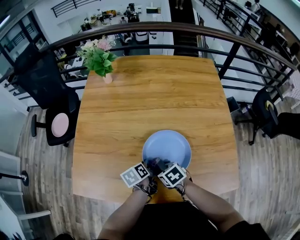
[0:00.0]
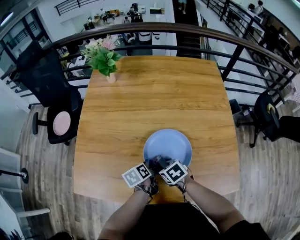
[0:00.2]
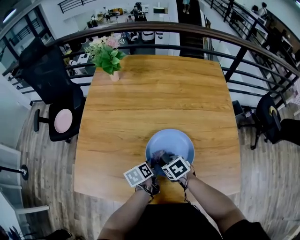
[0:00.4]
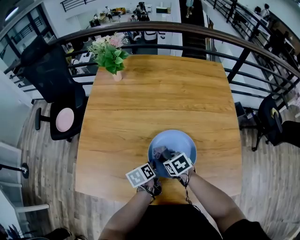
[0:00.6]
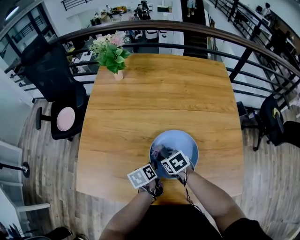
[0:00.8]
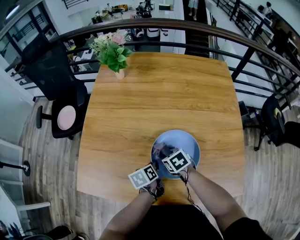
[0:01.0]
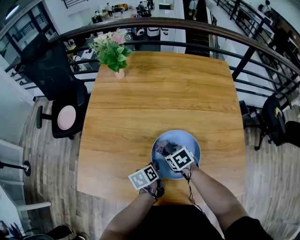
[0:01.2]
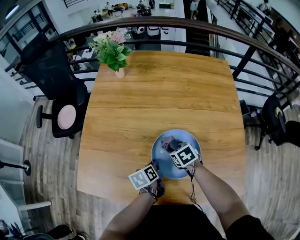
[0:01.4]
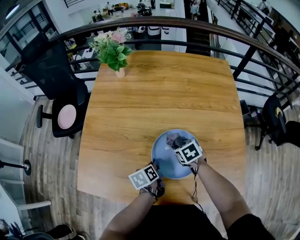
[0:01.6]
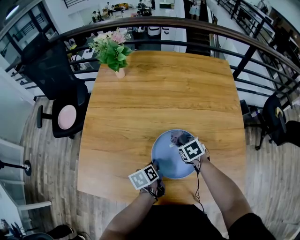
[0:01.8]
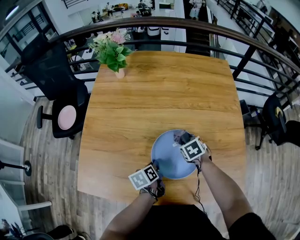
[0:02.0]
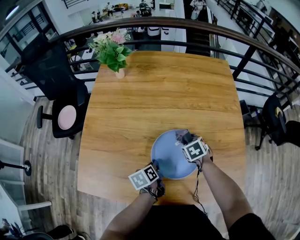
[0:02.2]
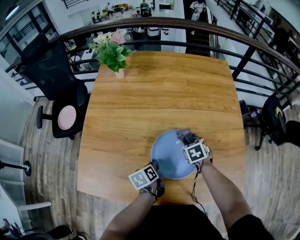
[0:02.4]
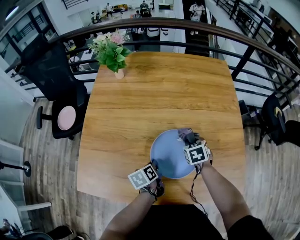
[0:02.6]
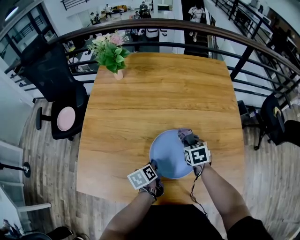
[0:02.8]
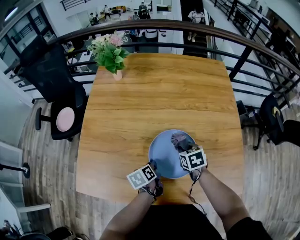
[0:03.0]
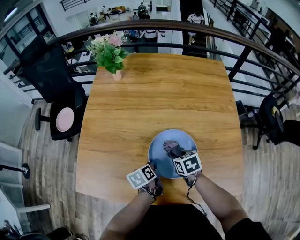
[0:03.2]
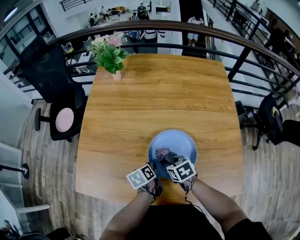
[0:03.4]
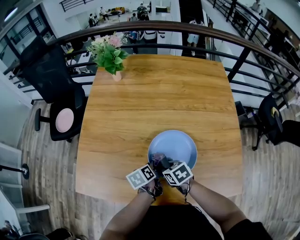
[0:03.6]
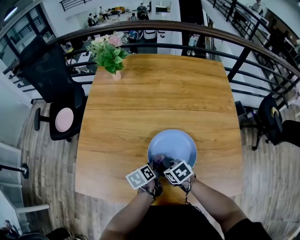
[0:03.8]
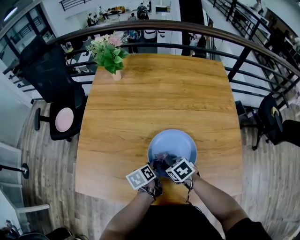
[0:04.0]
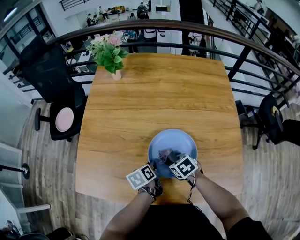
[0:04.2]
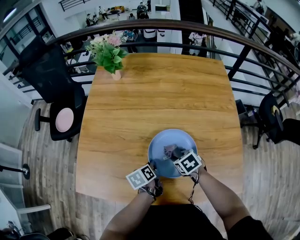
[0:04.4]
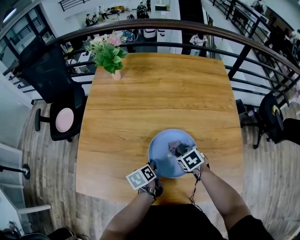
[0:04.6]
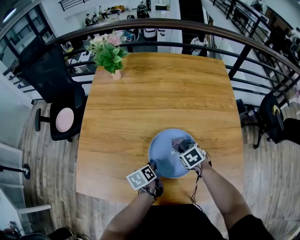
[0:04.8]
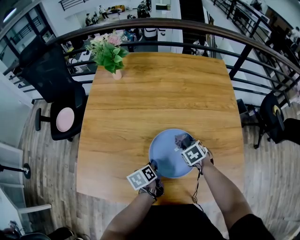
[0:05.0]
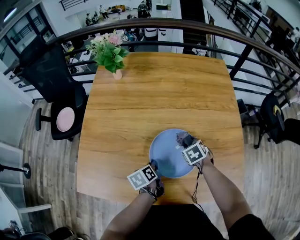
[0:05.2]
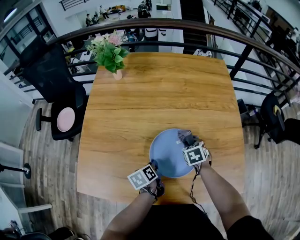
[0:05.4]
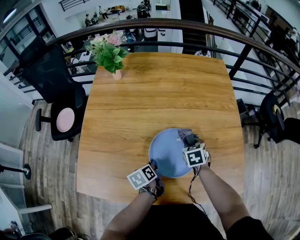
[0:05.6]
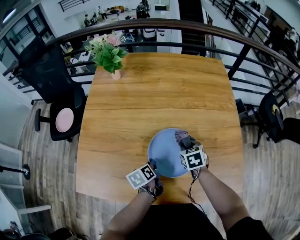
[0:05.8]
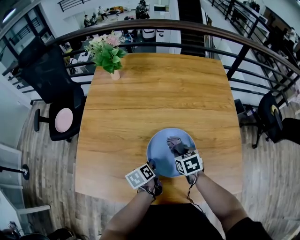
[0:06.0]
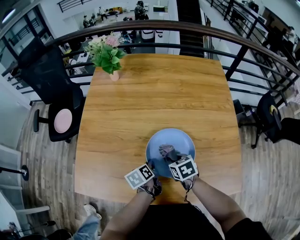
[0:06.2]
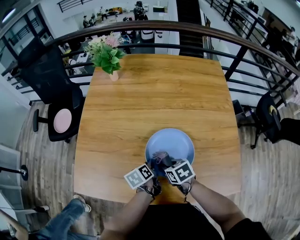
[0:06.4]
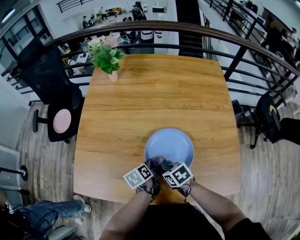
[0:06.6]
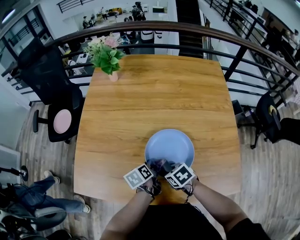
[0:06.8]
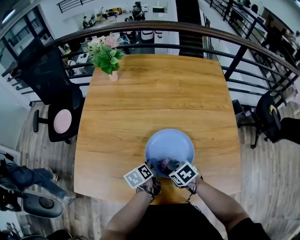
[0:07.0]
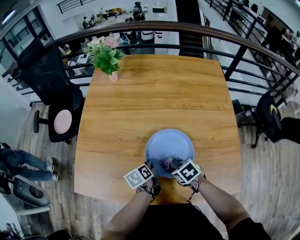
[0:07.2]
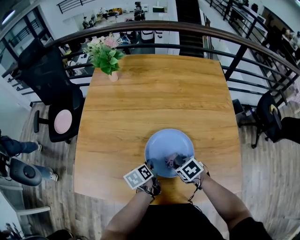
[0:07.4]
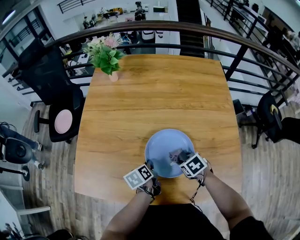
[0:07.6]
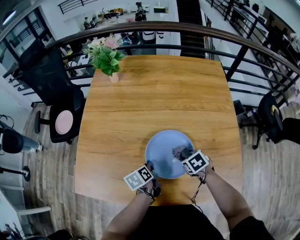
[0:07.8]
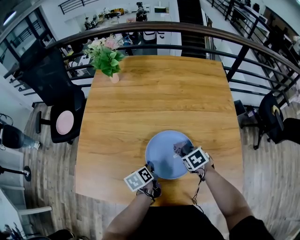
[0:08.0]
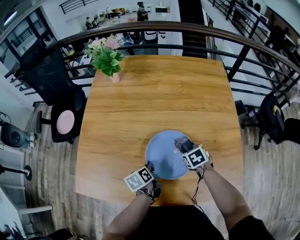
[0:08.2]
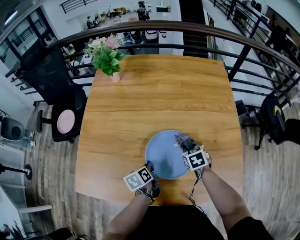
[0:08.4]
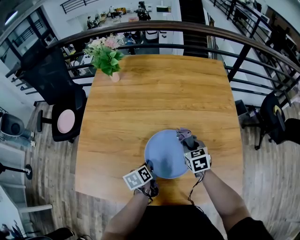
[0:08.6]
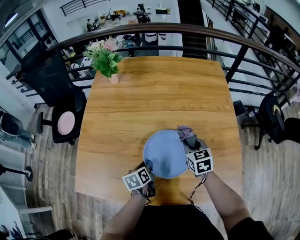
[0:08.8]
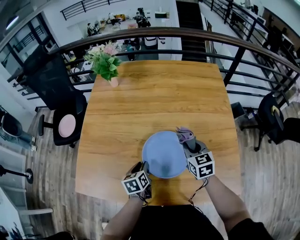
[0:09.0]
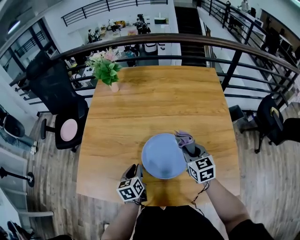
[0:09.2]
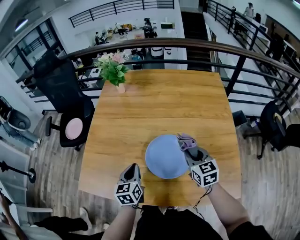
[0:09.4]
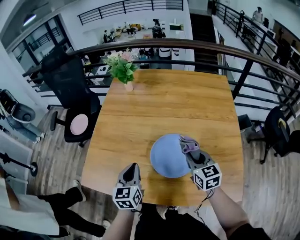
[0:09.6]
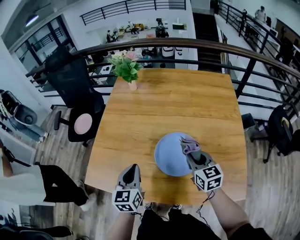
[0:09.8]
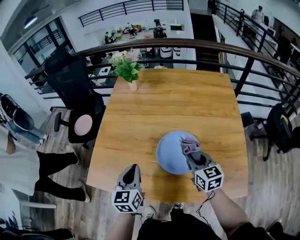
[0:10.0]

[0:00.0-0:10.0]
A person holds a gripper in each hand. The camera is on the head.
0:00.0 to 0:01.4: The right gripper goes approximately 10 cm forward.
0:01.4 to 0:02.8: The right gripper goes some 10 cm to the right, and rotates approximately 20 degrees.
0:02.8 to 0:04.2: The right gripper ends up roughly 15 cm from where it was, and turns by some 30 degrees.
0:04.2 to 0:05.8: The right gripper moves about 10 cm, and turns by about 30 degrees.
0:05.8 to 0:07.2: The right gripper ends up roughly 15 cm from where it was, and turns by about 30 degrees.
0:07.2 to 0:08.6: The right gripper changes place by some 15 cm, and turns by approximately 40 degrees.
0:08.6 to 0:10.0: The left gripper is displaced upward and to the left by roughly 25 cm, changes its angle by about 50 degrees, and opens, then closes again. The right gripper is displaced upward, backward and to the left by some 20 cm, and swivels roughly 30 degrees.

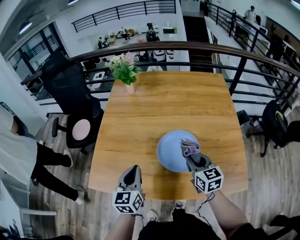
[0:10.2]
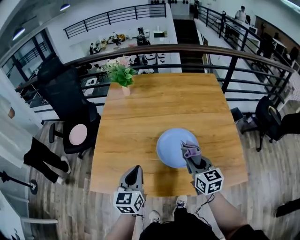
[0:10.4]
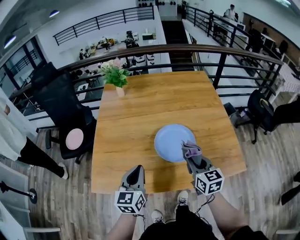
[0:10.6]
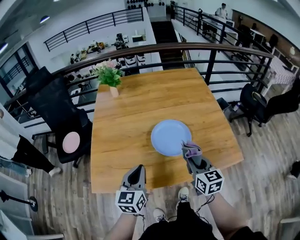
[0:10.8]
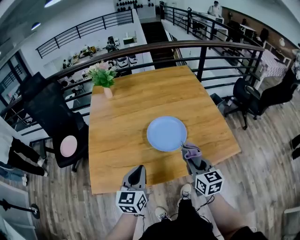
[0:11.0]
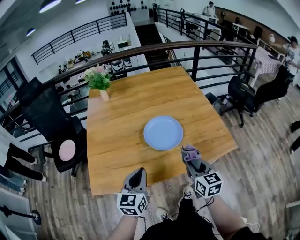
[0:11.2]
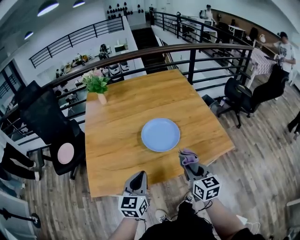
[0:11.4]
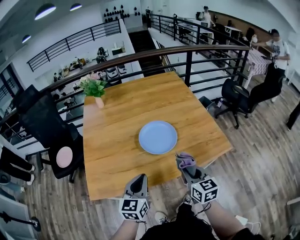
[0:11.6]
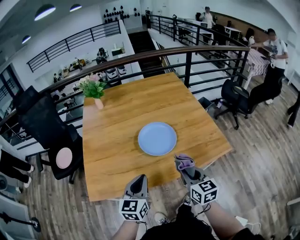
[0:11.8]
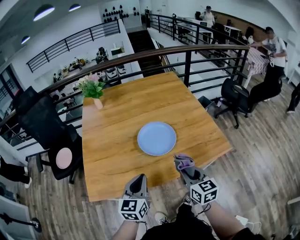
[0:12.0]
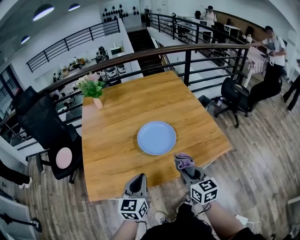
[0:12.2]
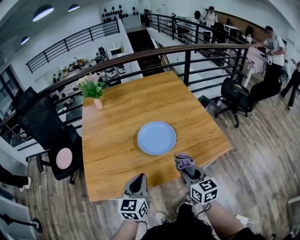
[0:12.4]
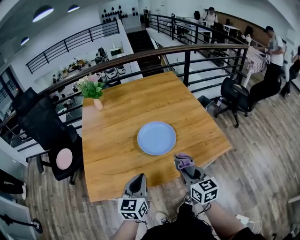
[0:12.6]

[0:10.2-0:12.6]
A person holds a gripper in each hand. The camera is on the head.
0:10.2 to 0:11.4: The left gripper goes roughly 15 cm backward, and changes its angle by some 30 degrees. The right gripper goes roughly 20 cm backward, and rotates some 20 degrees.
0:11.4 to 0:12.6: The grippers move only a little.

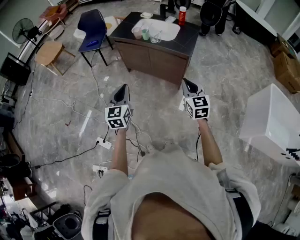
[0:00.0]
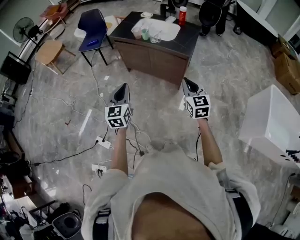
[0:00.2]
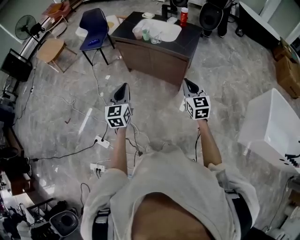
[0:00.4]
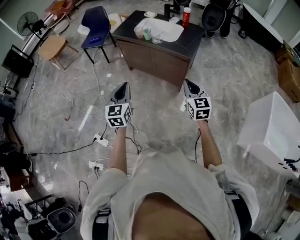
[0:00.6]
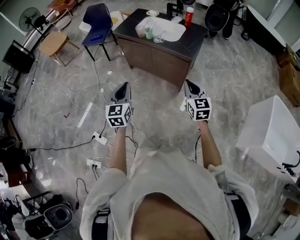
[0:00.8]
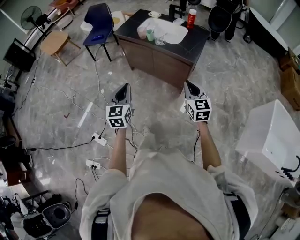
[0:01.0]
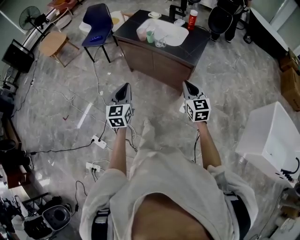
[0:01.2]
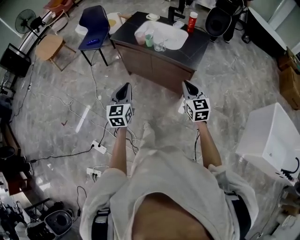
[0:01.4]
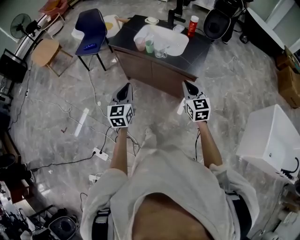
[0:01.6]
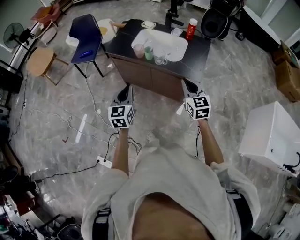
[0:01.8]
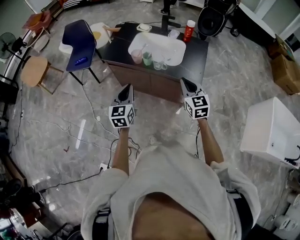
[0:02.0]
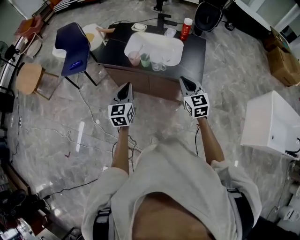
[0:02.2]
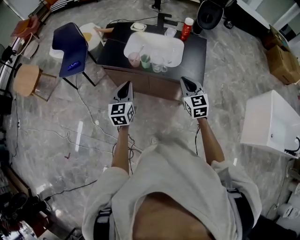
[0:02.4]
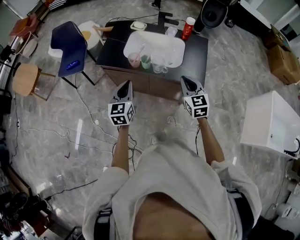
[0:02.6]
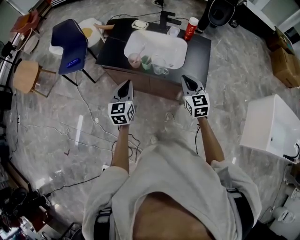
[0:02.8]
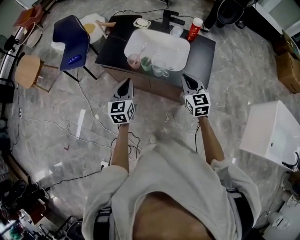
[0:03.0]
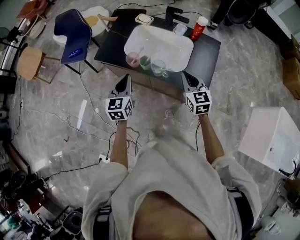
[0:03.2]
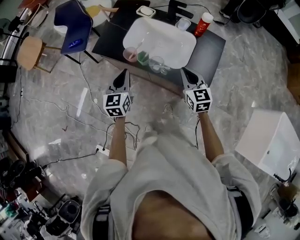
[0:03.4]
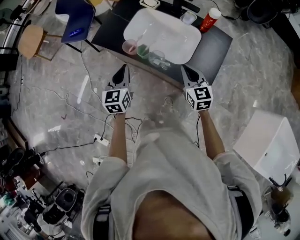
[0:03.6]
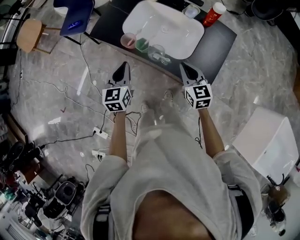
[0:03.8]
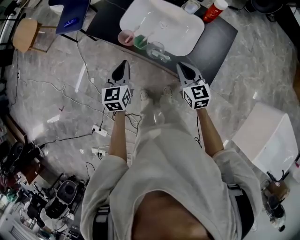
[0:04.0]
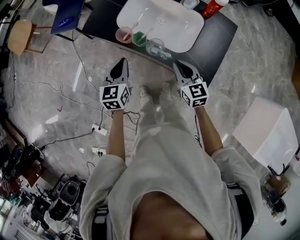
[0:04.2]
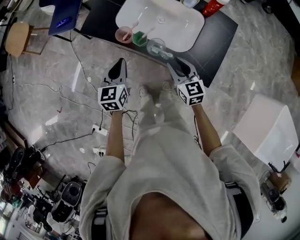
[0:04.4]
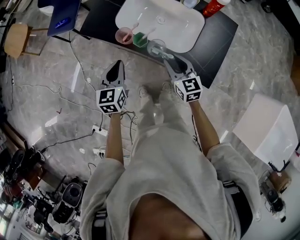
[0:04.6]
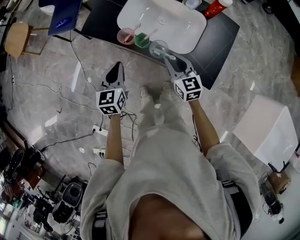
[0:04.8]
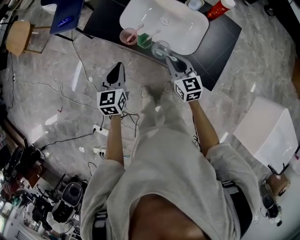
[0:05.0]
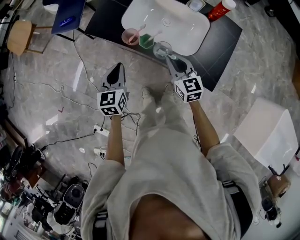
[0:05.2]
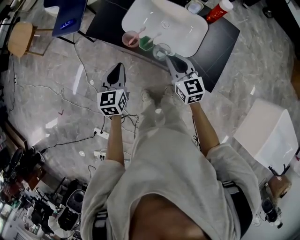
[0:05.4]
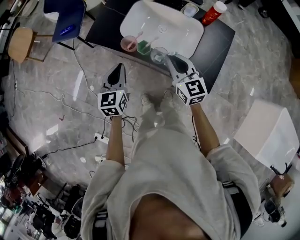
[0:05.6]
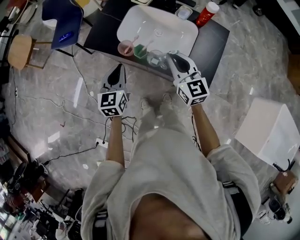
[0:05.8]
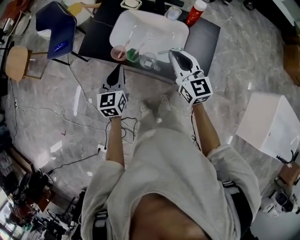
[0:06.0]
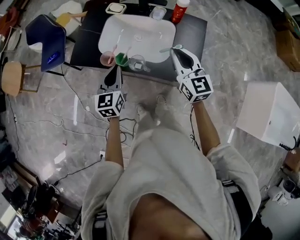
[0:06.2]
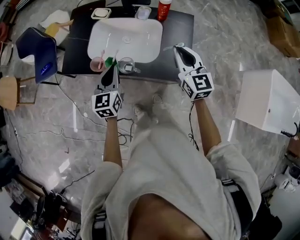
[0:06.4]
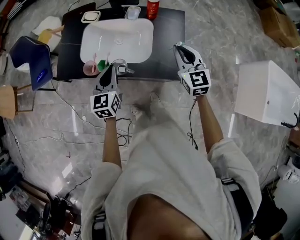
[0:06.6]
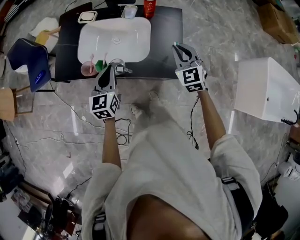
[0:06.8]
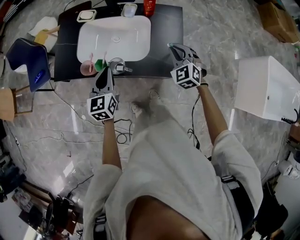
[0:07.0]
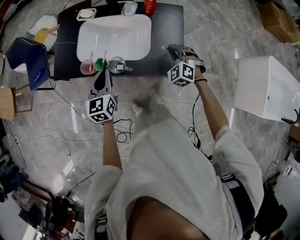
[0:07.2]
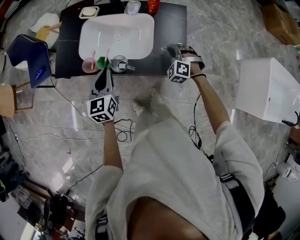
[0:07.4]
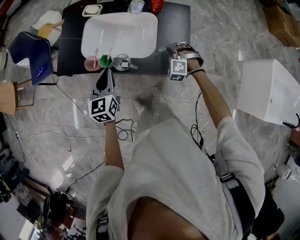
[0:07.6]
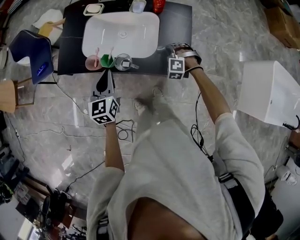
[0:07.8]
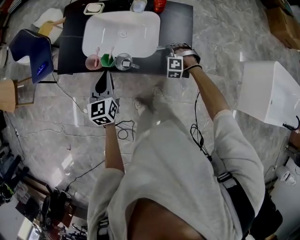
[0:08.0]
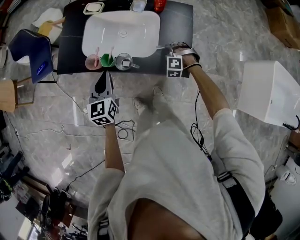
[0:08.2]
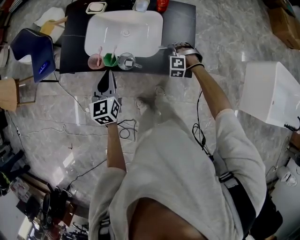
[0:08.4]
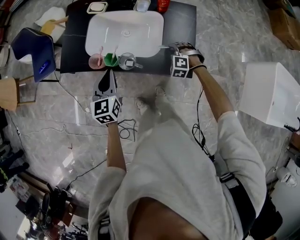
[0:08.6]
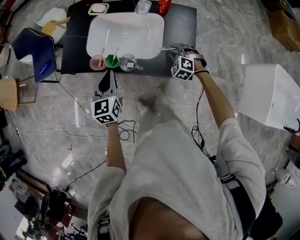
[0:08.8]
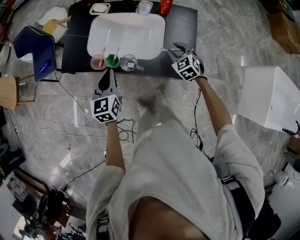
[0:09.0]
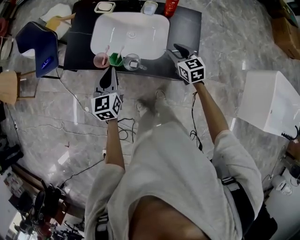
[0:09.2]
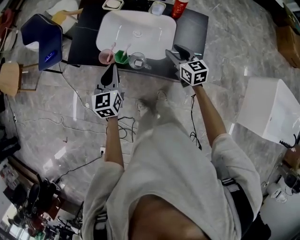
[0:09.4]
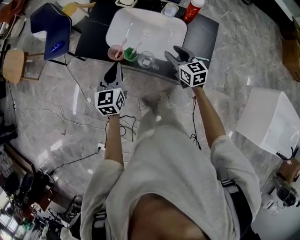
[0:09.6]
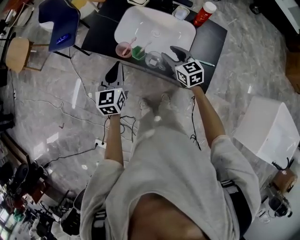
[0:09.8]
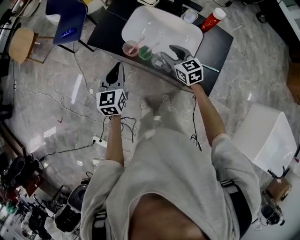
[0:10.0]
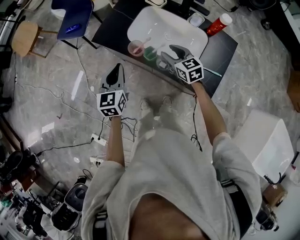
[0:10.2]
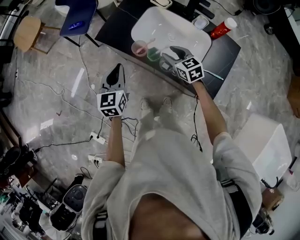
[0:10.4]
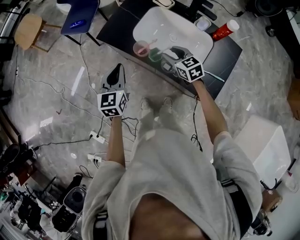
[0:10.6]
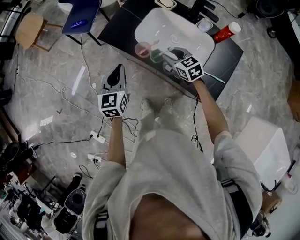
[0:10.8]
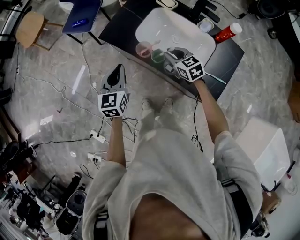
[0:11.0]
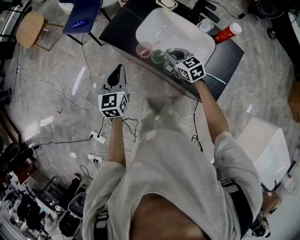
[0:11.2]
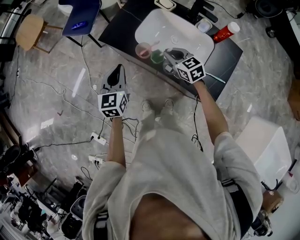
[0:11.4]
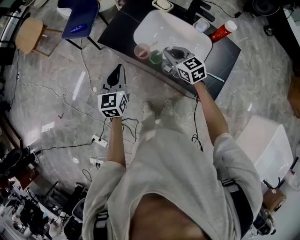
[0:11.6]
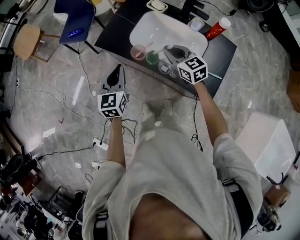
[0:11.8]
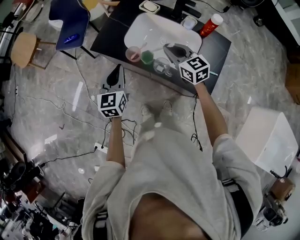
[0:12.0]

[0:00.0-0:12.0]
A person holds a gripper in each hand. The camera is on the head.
0:00.0 to 0:01.6: Both grippers move forward, some 20 cm.
0:01.6 to 0:03.0: Both grippers move forward, approximately 25 cm.
0:03.0 to 0:04.4: The two grippers go about 10 cm downward and forward. The right gripper changes its angle by about 20 degrees, and opens.
0:04.4 to 0:06.0: The right gripper shifts about 15 cm upward, and closes its fingers. Meanwhile the left gripper is displaced upward by approximately 5 cm.
0:06.0 to 0:07.6: The left gripper travels to the right by approximately 5 cm; the right gripper is displaced downward and to the right by approximately 25 cm, and points its fingers some 40 degrees further downward.
0:07.6 to 0:09.0: The right gripper rotates around the line of its fingers by roughly 40 degrees, clockwise from behind, and opens.
0:09.0 to 0:10.4: The left gripper ends up about 15 cm from where it was; the right gripper moves roughly 25 cm, and turns by roughly 30 degrees.
0:10.4 to 0:12.0: The right gripper travels upward by roughly 10 cm, and closes.
